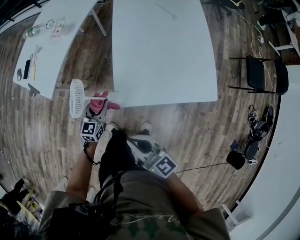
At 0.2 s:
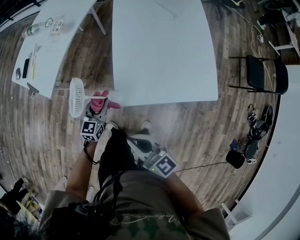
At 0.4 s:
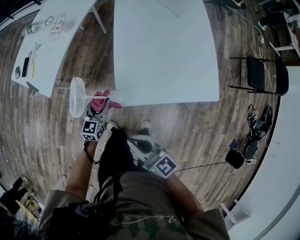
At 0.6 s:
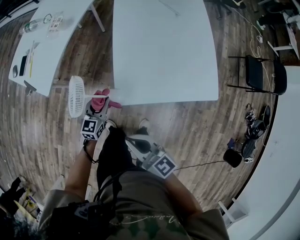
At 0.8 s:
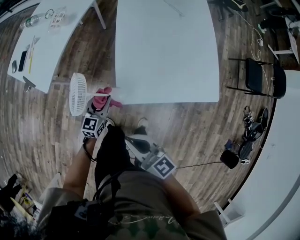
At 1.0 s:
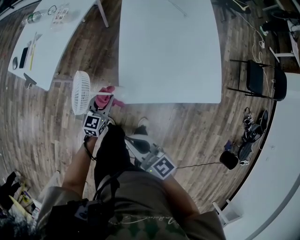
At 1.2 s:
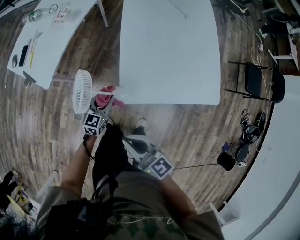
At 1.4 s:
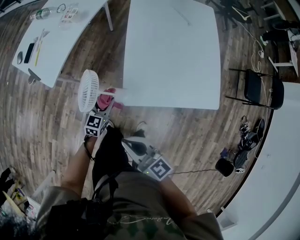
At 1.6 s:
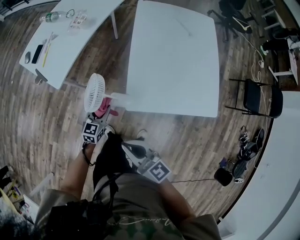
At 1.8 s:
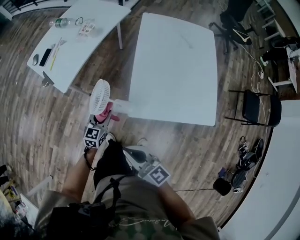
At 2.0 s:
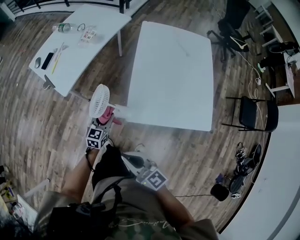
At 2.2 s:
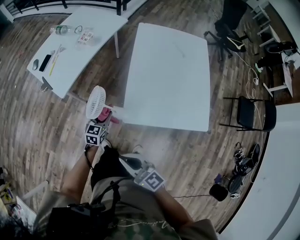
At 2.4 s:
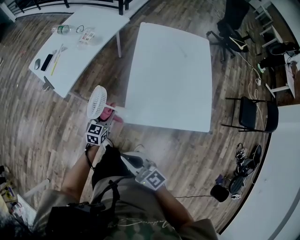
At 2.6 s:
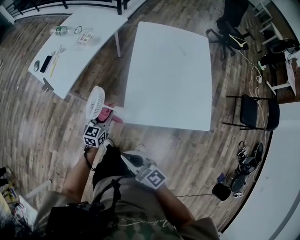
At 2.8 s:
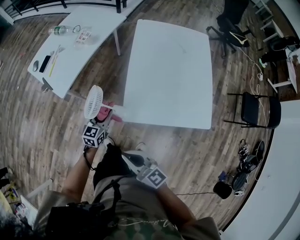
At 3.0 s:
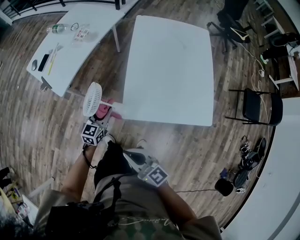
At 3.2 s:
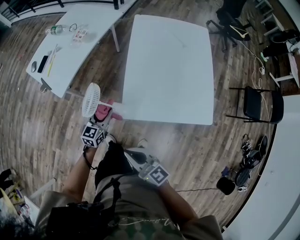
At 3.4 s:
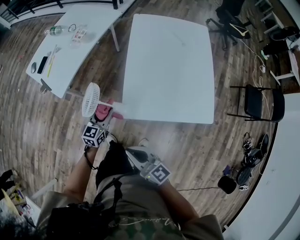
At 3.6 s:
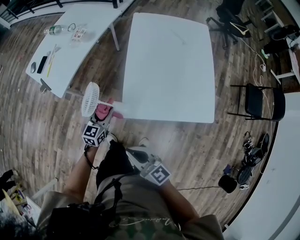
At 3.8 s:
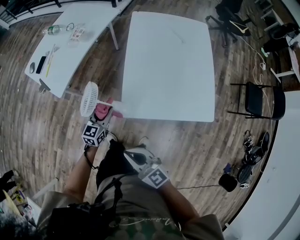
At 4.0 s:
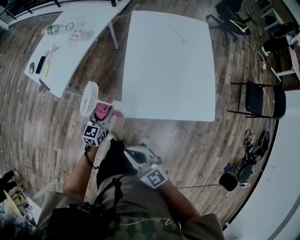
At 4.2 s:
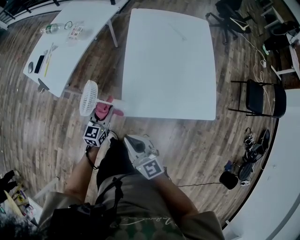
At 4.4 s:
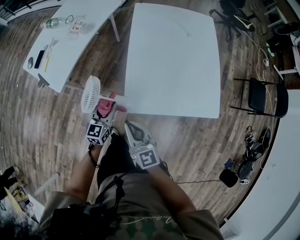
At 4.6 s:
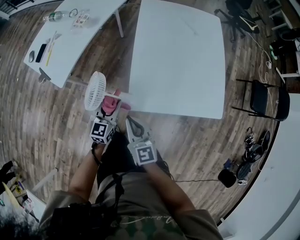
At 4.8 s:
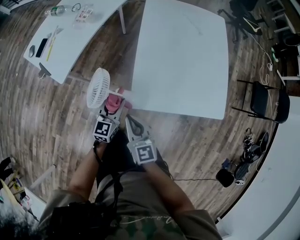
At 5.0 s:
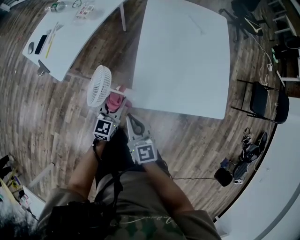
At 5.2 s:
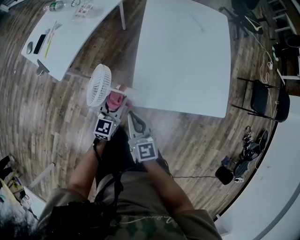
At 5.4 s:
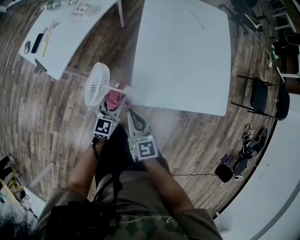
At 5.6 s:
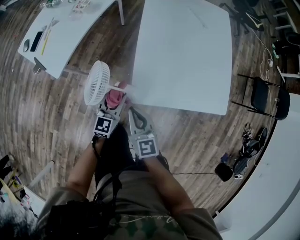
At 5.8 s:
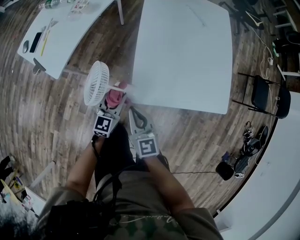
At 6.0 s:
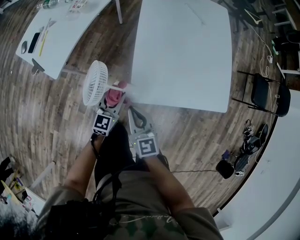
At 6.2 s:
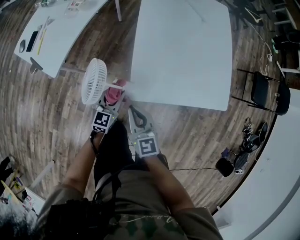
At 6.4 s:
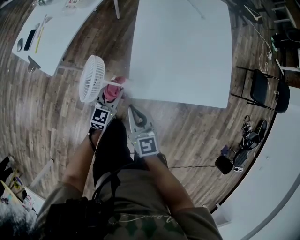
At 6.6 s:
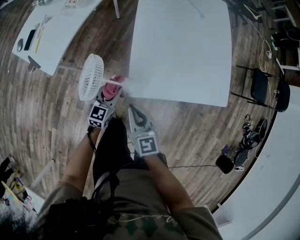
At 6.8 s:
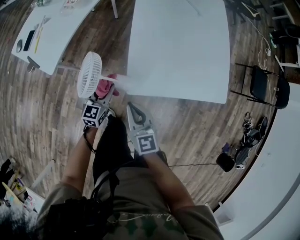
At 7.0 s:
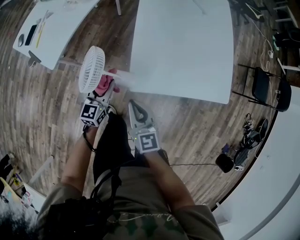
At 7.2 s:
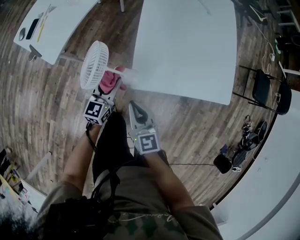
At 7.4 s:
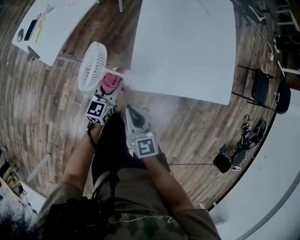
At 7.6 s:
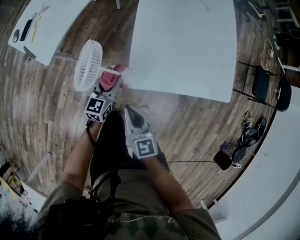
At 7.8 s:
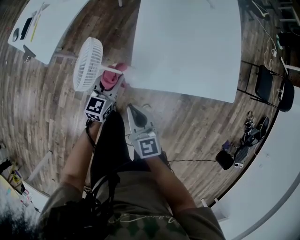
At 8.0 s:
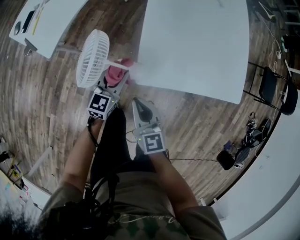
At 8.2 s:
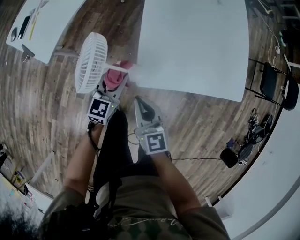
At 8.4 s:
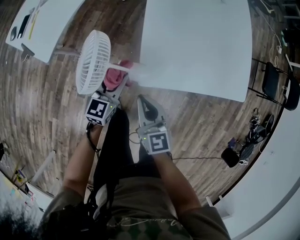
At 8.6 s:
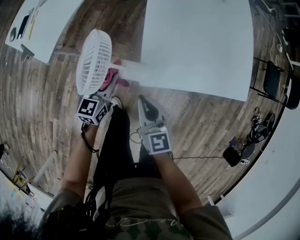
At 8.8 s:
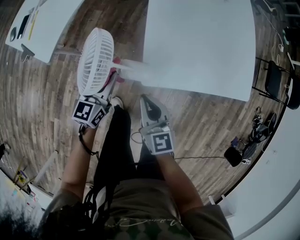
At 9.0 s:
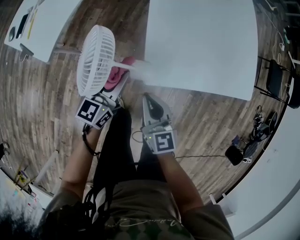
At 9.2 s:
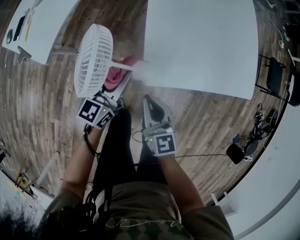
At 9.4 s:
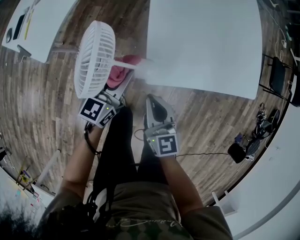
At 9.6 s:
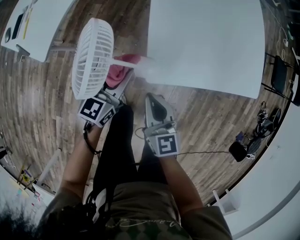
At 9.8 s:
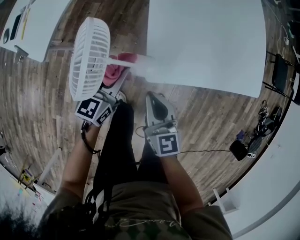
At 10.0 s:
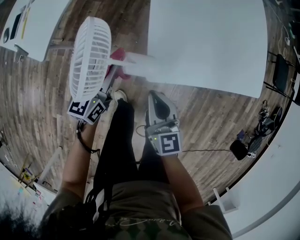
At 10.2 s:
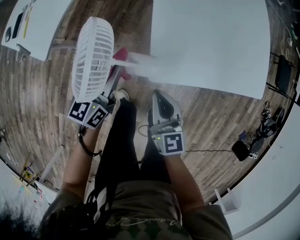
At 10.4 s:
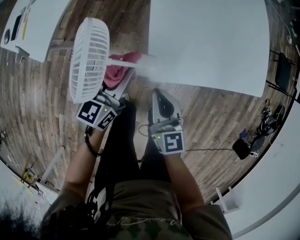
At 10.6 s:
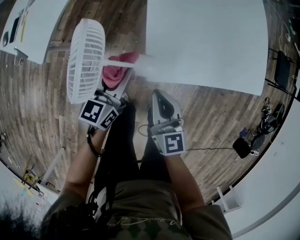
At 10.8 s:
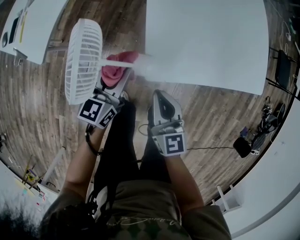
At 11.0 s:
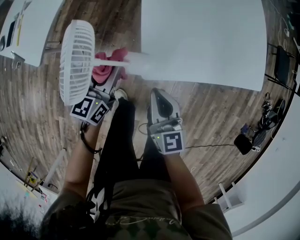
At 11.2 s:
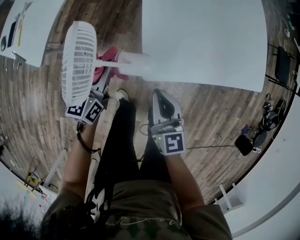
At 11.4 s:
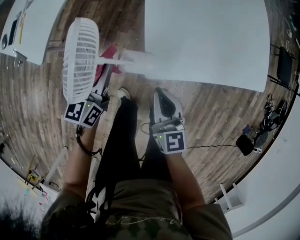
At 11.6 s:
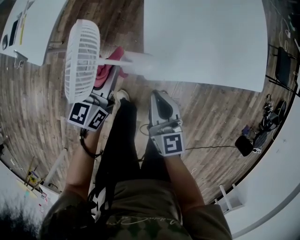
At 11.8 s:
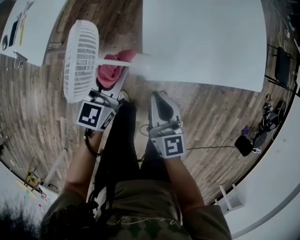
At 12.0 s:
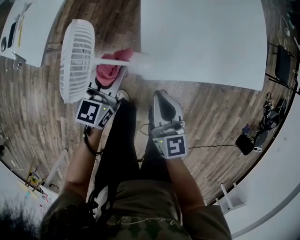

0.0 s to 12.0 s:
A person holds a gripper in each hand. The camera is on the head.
0.0 to 1.6 s: Both grippers travel together to the left, approximately 5 cm.
1.6 to 3.0 s: The left gripper travels upward by some 5 cm.
3.0 to 4.4 s: The right gripper heads forward, covering about 10 cm, and turns by some 20 degrees.
4.4 to 6.0 s: The right gripper travels downward by approximately 5 cm.
6.0 to 7.6 s: The right gripper ends up approximately 5 cm from where it was.
7.6 to 9.0 s: The right gripper ends up roughly 5 cm from where it was.
9.0 to 10.4 s: The grippers move only a little.

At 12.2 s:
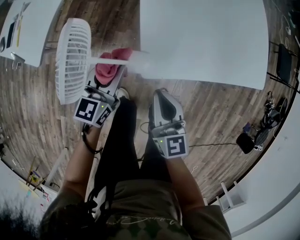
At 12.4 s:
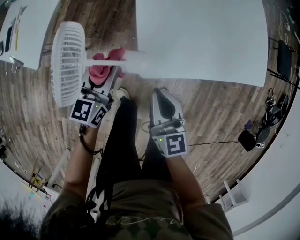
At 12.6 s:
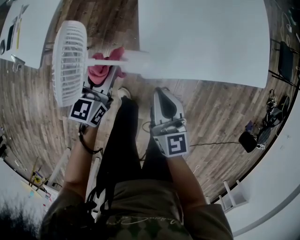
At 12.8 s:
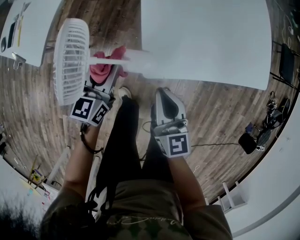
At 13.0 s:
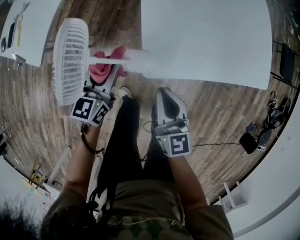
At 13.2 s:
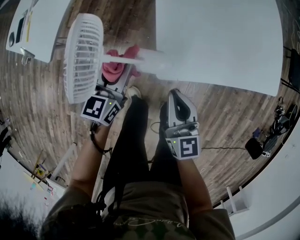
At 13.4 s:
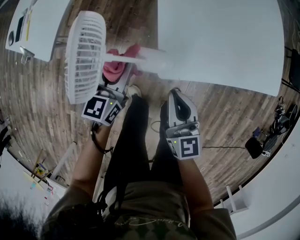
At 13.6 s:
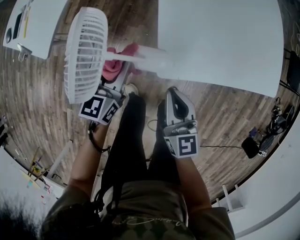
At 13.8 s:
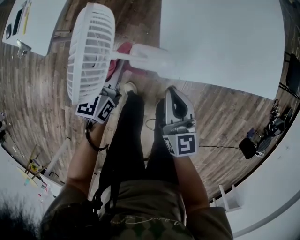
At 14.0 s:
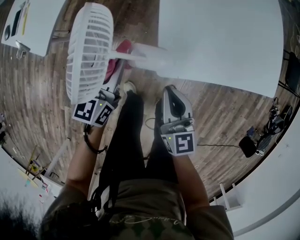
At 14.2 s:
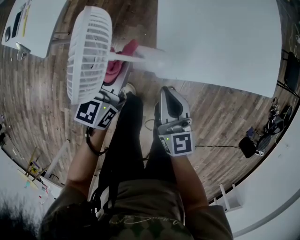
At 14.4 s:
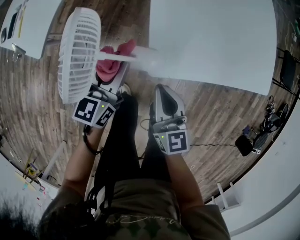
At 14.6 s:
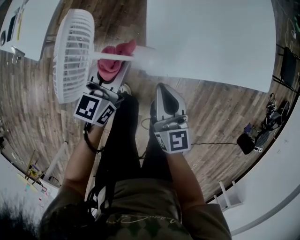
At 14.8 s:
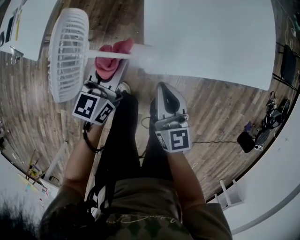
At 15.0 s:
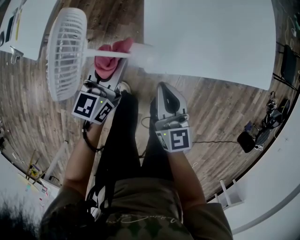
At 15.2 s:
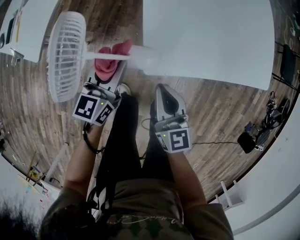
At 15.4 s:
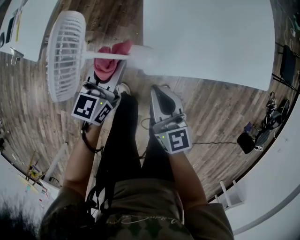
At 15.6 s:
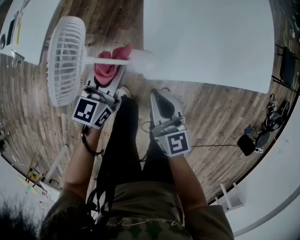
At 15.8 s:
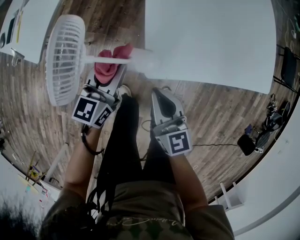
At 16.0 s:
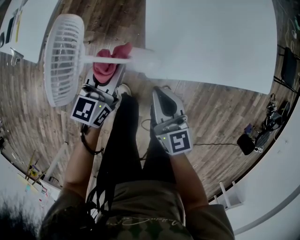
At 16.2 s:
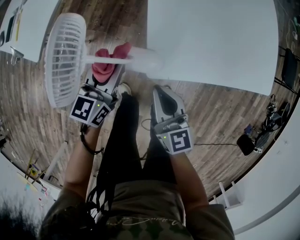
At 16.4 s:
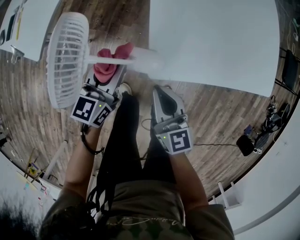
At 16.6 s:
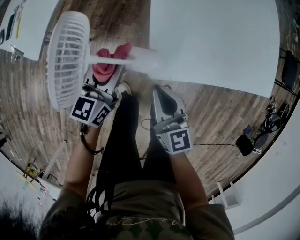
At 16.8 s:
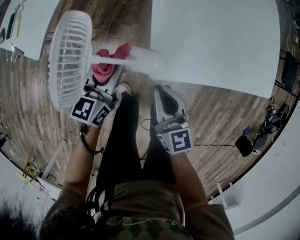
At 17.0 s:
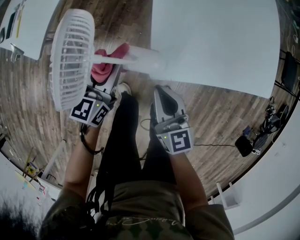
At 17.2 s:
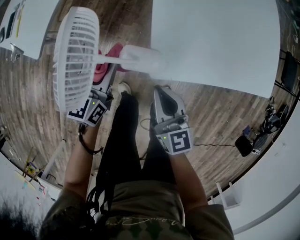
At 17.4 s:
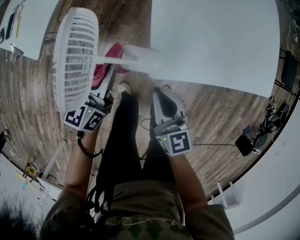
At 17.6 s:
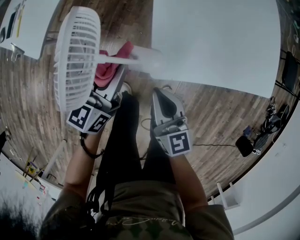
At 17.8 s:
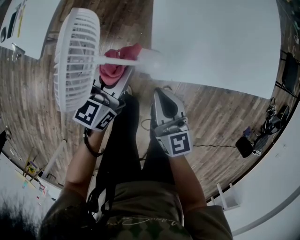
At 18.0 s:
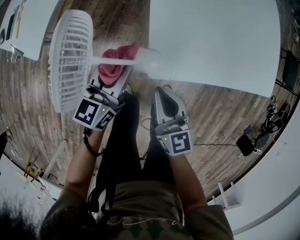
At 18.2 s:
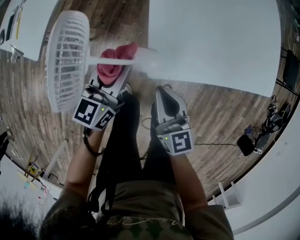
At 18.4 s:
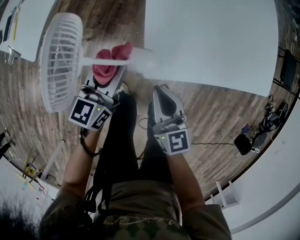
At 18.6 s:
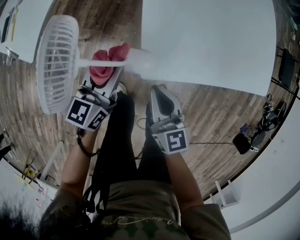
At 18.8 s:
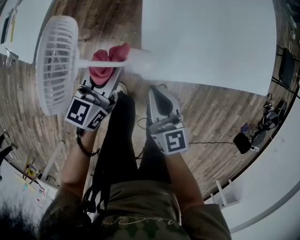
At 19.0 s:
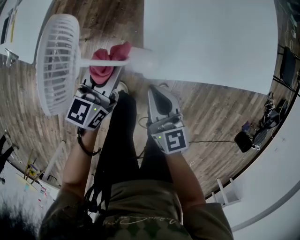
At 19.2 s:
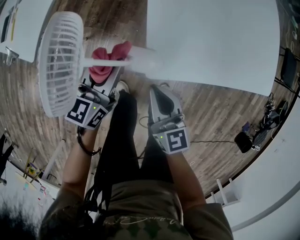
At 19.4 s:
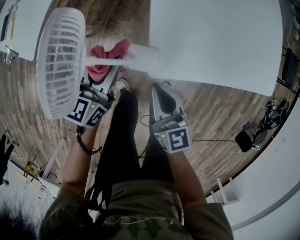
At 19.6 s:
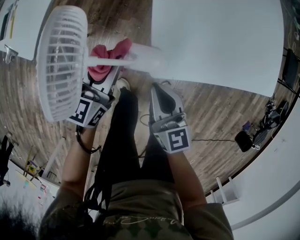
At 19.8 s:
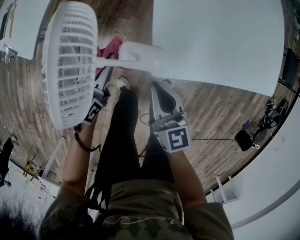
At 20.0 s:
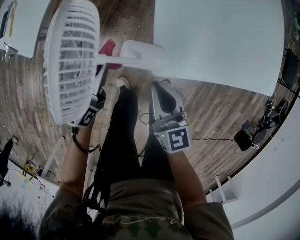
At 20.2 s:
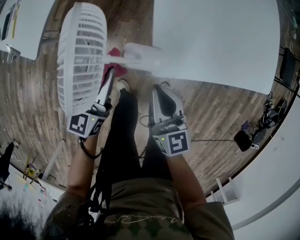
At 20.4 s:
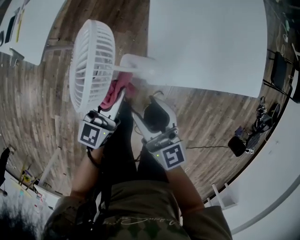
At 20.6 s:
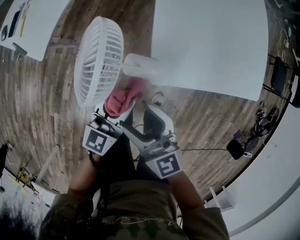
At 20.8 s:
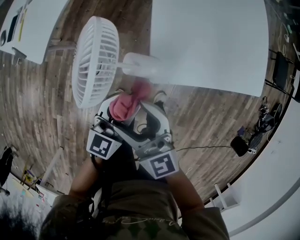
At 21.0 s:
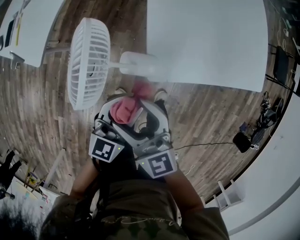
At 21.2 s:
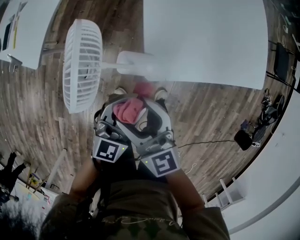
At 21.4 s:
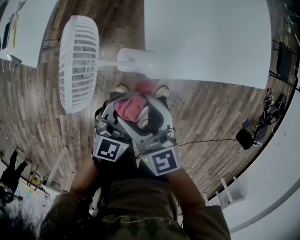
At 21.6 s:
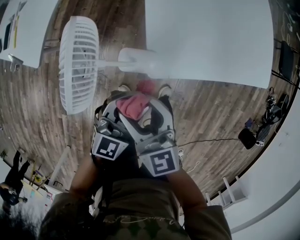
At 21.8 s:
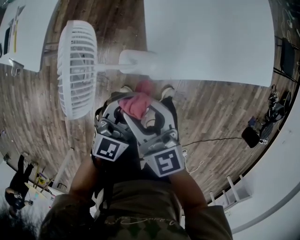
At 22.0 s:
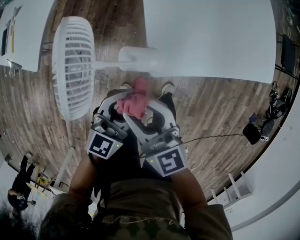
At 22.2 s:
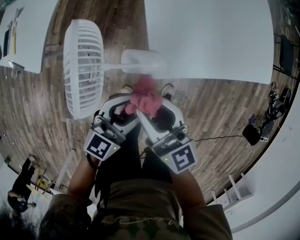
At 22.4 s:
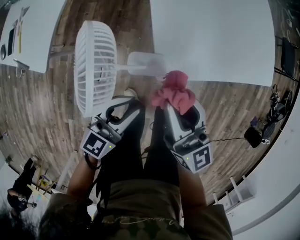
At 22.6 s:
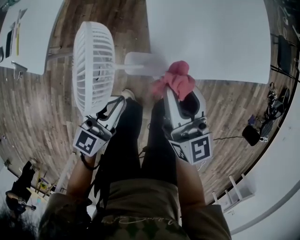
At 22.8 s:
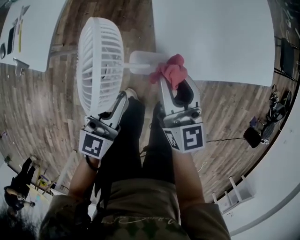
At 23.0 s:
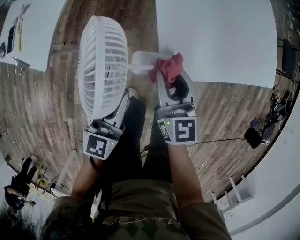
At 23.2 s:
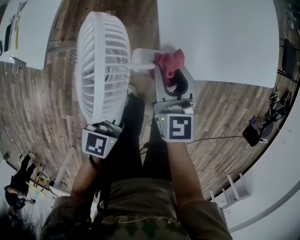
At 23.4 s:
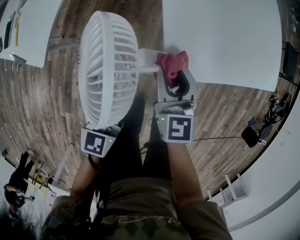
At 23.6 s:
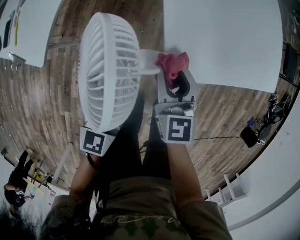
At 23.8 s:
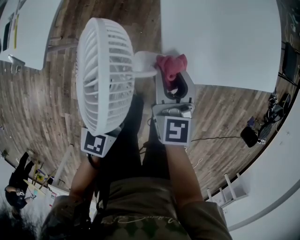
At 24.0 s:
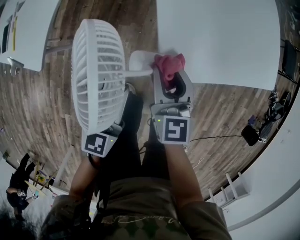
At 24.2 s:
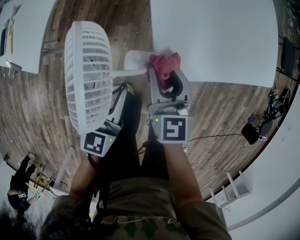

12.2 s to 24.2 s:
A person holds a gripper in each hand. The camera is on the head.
12.2 to 13.8 s: The left gripper ends up some 5 cm from where it was.
13.8 to 16.6 s: The grippers move only a little.
16.6 to 18.2 s: The grippers move only a little.
18.2 to 19.8 s: The left gripper moves to the left, about 5 cm.
19.8 to 21.2 s: The right gripper moves upward and to the left, approximately 10 cm, and opens; the left gripper is displaced to the right, backward and upward by approximately 20 cm, and turns by roughly 30 degrees.
21.2 to 22.6 s: The right gripper travels forward and to the right by some 10 cm, changes its angle by approximately 20 degrees, and closes. Meanwhile the left gripper heads to the left, covering roughly 10 cm, and closes its fingers.
22.6 to 24.2 s: The right gripper travels downward by some 10 cm.
